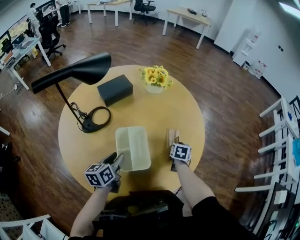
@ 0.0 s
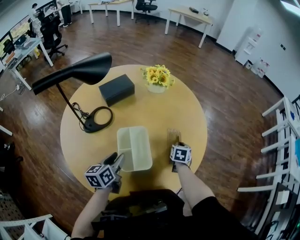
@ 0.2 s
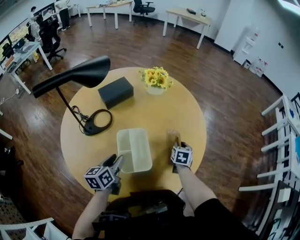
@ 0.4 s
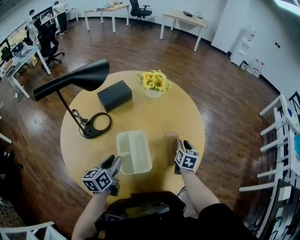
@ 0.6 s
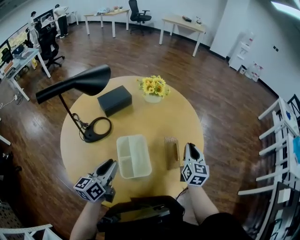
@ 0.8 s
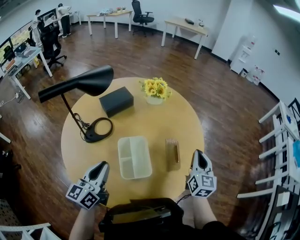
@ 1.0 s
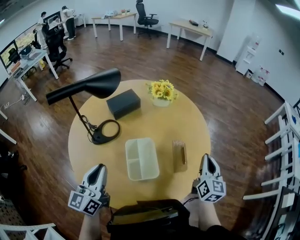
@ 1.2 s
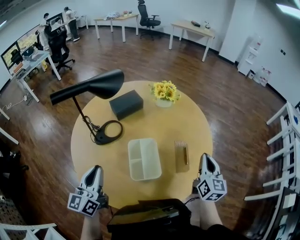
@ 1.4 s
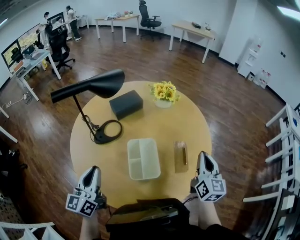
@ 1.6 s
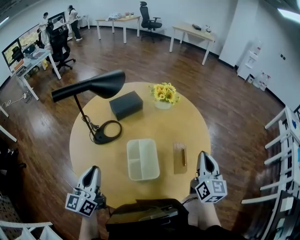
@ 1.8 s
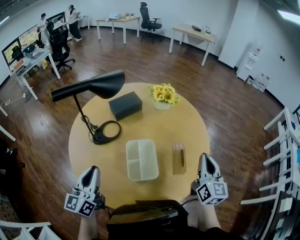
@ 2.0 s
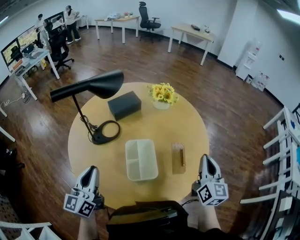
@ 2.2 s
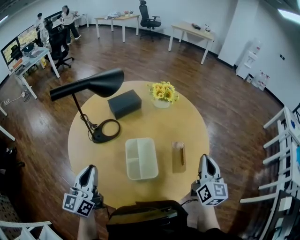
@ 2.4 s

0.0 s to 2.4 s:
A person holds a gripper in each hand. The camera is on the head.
0.0 to 1.2 s: The right gripper heads upward, covering approximately 25 cm, tilts its fingers approximately 40 degrees upward, and opens, then closes again; the left gripper heads upward and backward, covering some 20 cm, swivels some 30 degrees, and closes.
1.2 to 2.4 s: There are only small adjustments of the grippers.

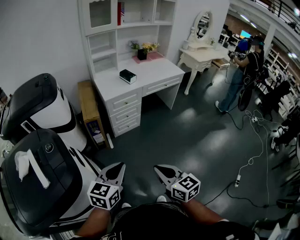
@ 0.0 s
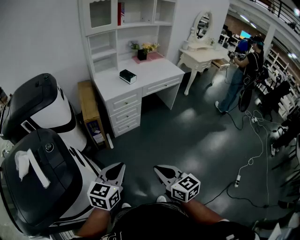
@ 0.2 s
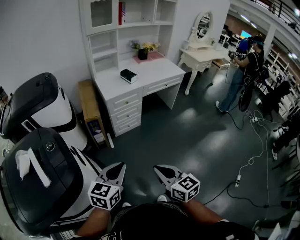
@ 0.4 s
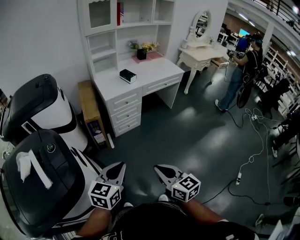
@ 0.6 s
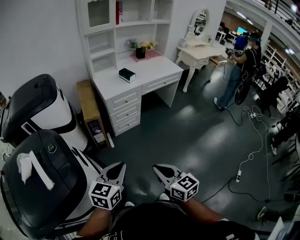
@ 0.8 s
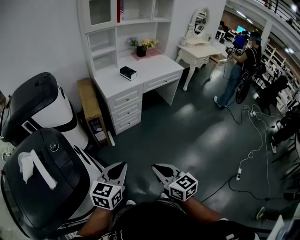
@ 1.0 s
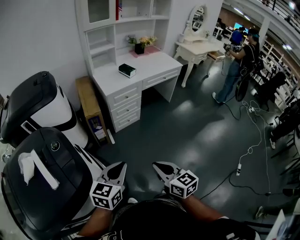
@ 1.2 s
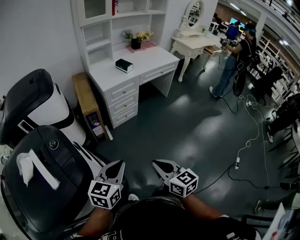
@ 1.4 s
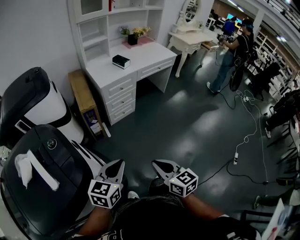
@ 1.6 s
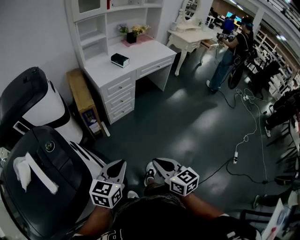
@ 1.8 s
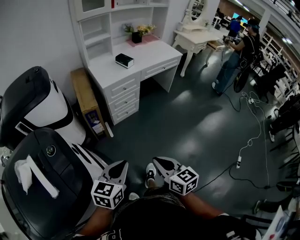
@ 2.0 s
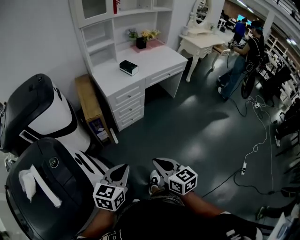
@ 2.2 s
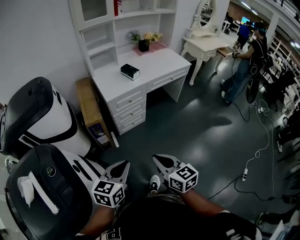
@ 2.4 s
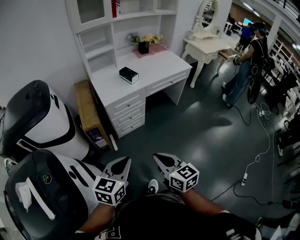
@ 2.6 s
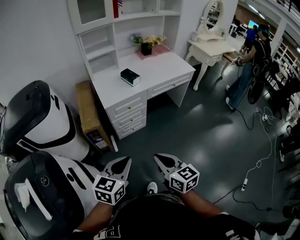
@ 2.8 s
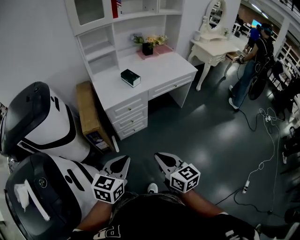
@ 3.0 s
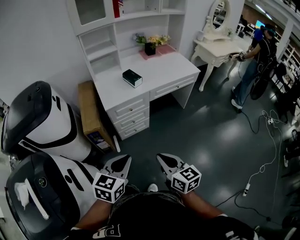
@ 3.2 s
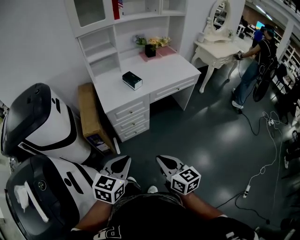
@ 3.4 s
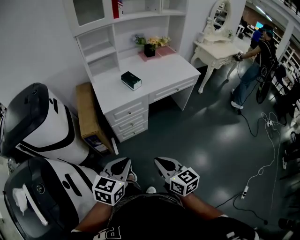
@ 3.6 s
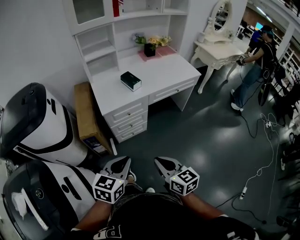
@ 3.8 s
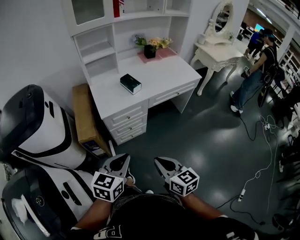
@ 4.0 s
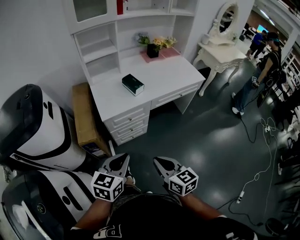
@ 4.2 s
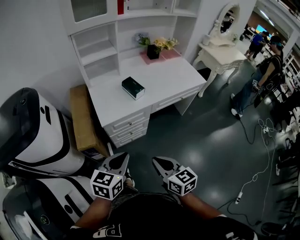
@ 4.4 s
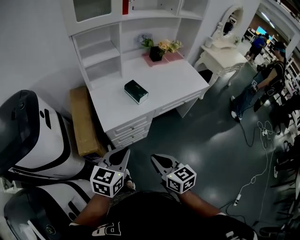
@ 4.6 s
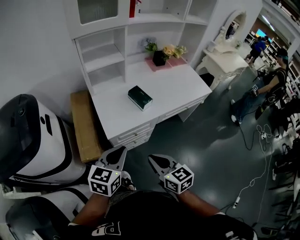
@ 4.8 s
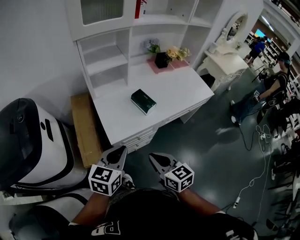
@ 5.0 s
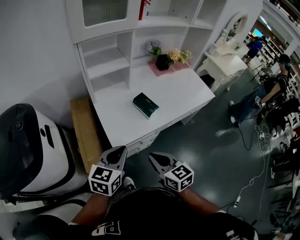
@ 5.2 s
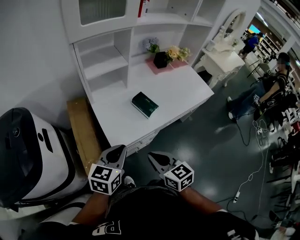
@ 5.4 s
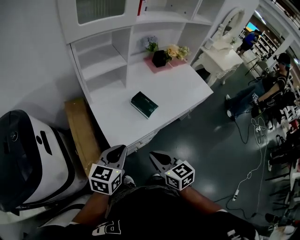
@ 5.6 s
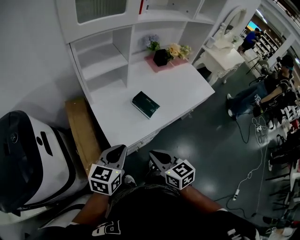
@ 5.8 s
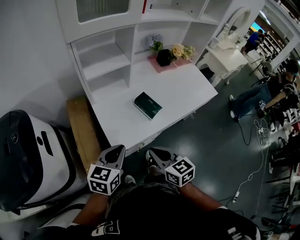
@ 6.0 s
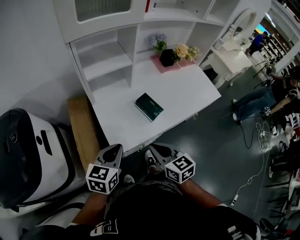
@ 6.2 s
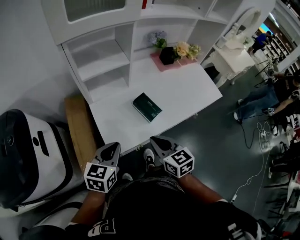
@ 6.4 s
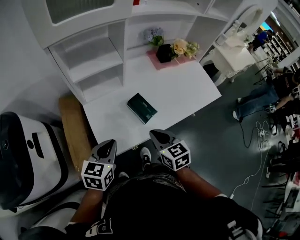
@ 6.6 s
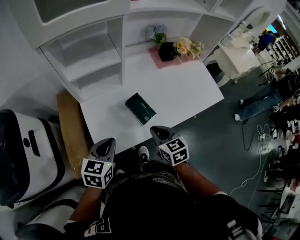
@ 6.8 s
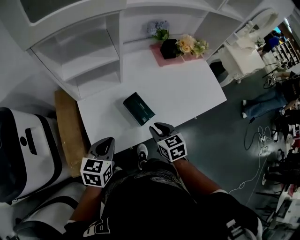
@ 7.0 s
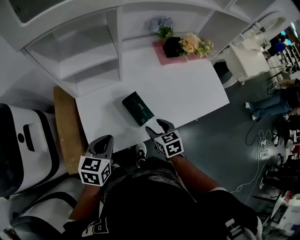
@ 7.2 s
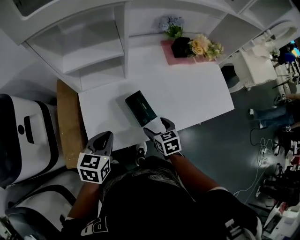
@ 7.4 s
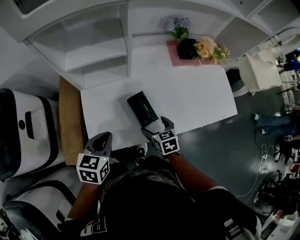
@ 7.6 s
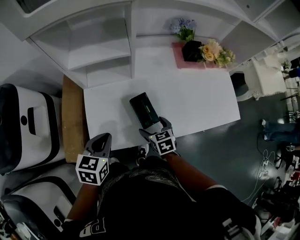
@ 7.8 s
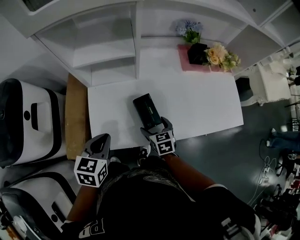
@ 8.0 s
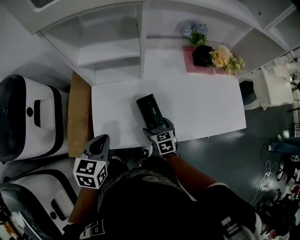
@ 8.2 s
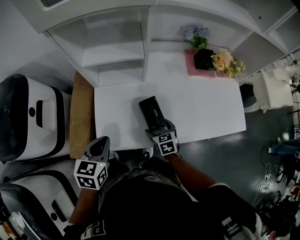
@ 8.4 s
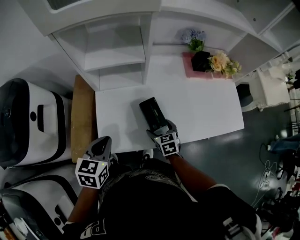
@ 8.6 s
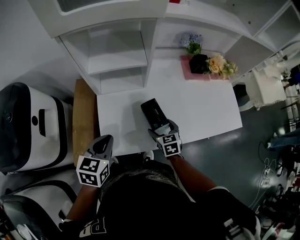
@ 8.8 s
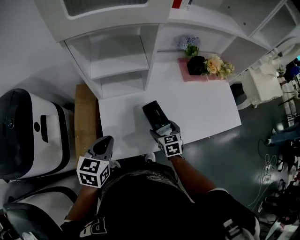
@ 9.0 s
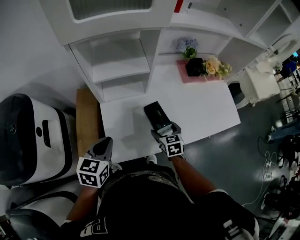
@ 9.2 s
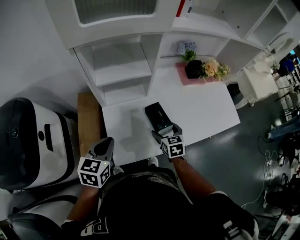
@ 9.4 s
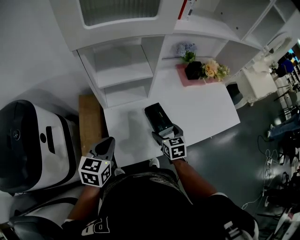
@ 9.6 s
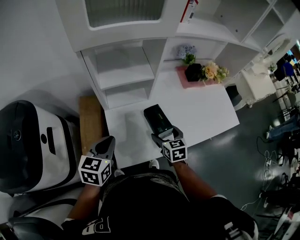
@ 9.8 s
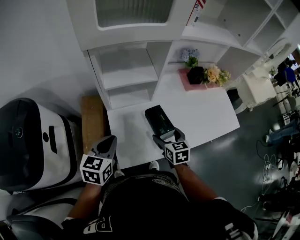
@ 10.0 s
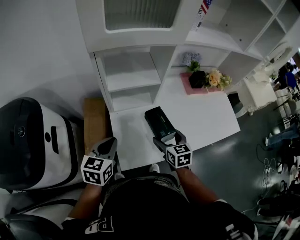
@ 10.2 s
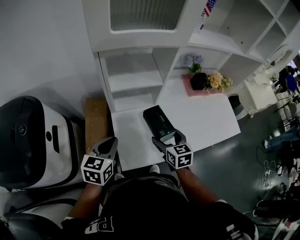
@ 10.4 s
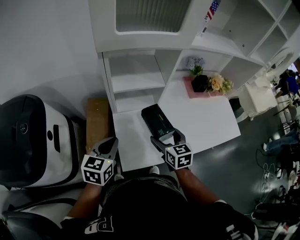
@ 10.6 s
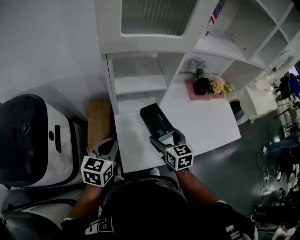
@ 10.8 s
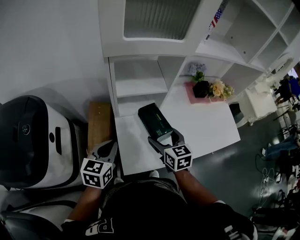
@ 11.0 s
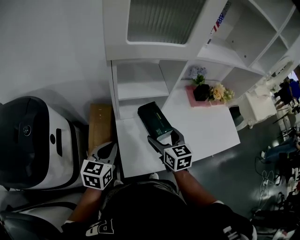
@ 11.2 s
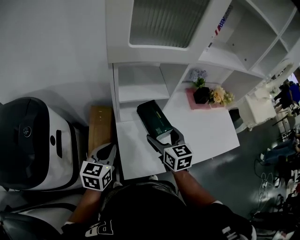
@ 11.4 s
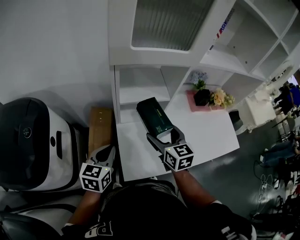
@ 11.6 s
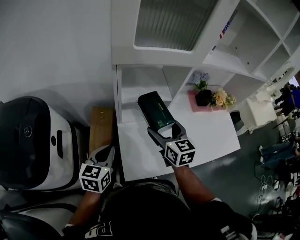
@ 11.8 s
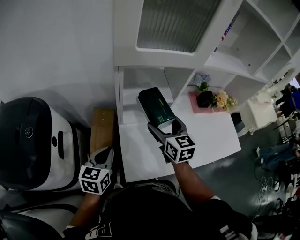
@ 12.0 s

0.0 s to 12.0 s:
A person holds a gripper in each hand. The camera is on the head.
0.0 to 1.6 s: Both grippers move to the left, about 5 cm.
1.6 to 3.0 s: The left gripper moves forward and to the right, roughly 25 cm; the right gripper shifts about 30 cm forward.
3.0 to 4.4 s: Both grippers travel together forward, roughly 20 cm.
4.4 to 6.0 s: The grippers both shift forward and to the left by about 30 cm.
6.0 to 7.6 s: The right gripper shifts approximately 30 cm forward, downward and to the right, changes its angle by roughly 20 degrees, and opens up, while the left gripper is displaced forward, downward and to the right by roughly 15 cm, and swivels approximately 20 degrees.
7.6 to 9.0 s: The right gripper moves about 5 cm. The left gripper moves to the left, some 10 cm.
9.0 to 10.4 s: The left gripper goes roughly 5 cm to the left; the right gripper is displaced upward and to the left by about 15 cm.
10.4 to 12.0 s: The left gripper heads to the left, covering roughly 5 cm. The right gripper is displaced upward, forward and to the left by roughly 15 cm.

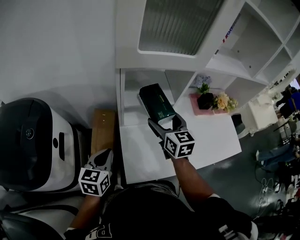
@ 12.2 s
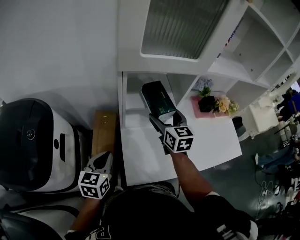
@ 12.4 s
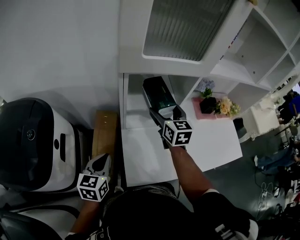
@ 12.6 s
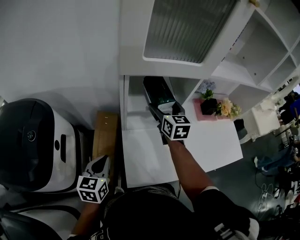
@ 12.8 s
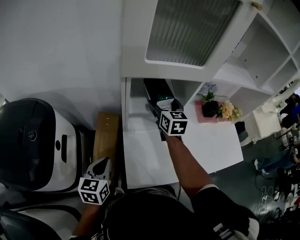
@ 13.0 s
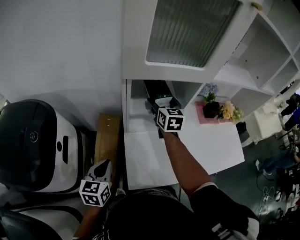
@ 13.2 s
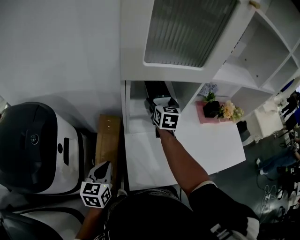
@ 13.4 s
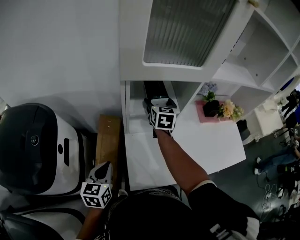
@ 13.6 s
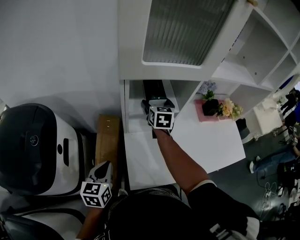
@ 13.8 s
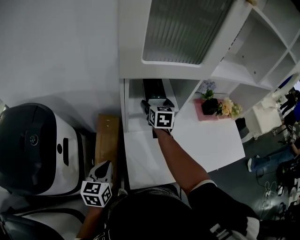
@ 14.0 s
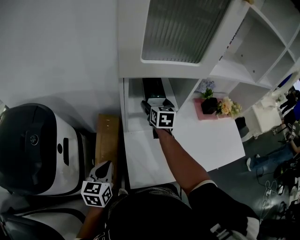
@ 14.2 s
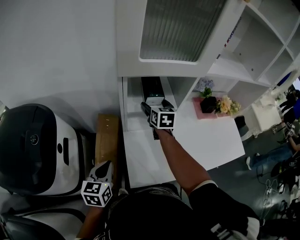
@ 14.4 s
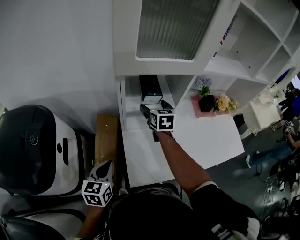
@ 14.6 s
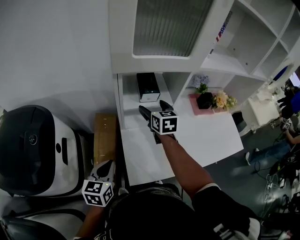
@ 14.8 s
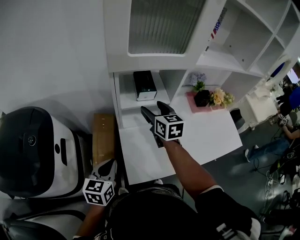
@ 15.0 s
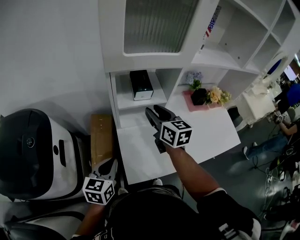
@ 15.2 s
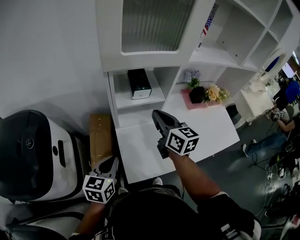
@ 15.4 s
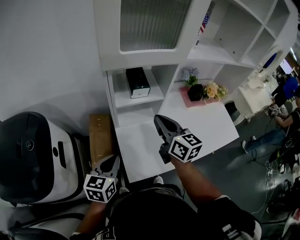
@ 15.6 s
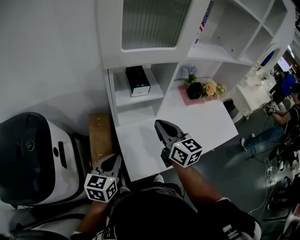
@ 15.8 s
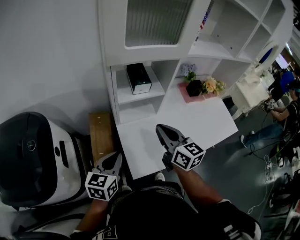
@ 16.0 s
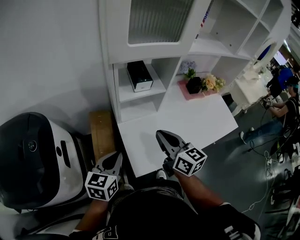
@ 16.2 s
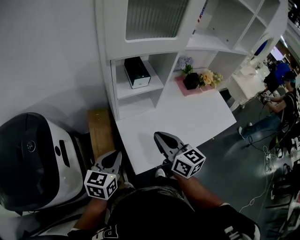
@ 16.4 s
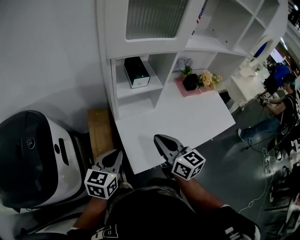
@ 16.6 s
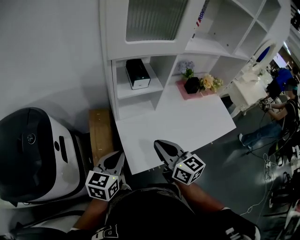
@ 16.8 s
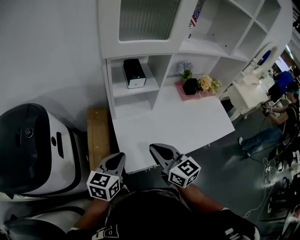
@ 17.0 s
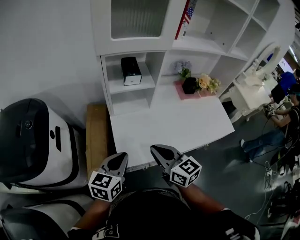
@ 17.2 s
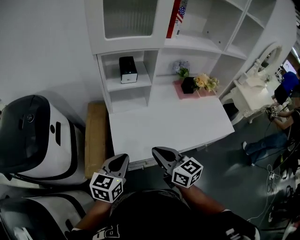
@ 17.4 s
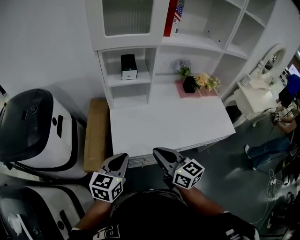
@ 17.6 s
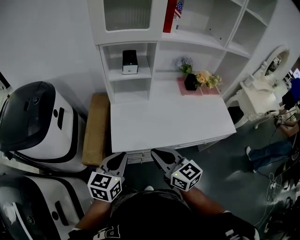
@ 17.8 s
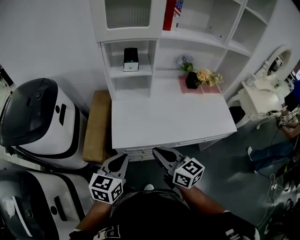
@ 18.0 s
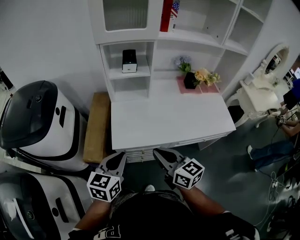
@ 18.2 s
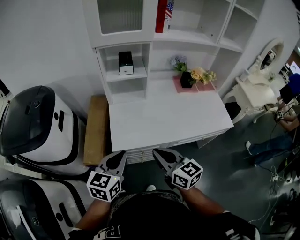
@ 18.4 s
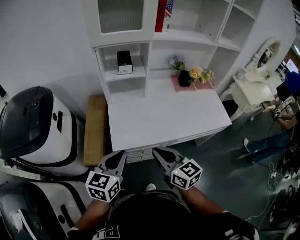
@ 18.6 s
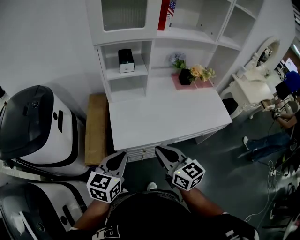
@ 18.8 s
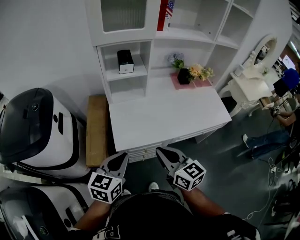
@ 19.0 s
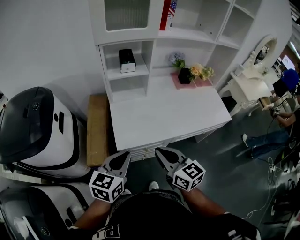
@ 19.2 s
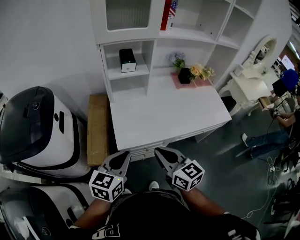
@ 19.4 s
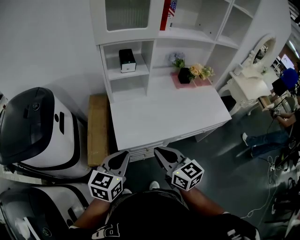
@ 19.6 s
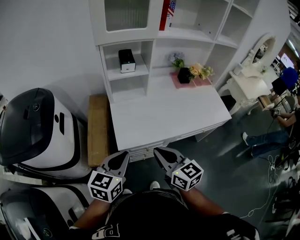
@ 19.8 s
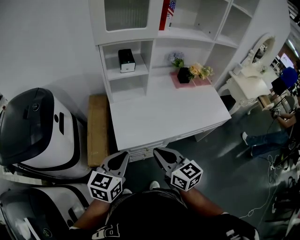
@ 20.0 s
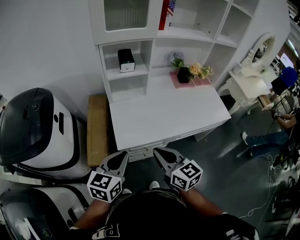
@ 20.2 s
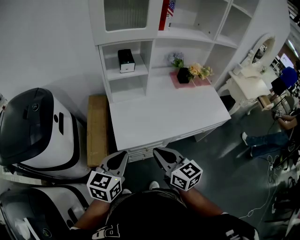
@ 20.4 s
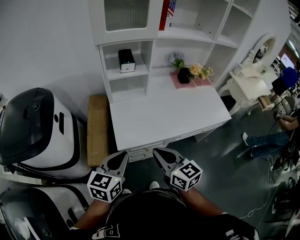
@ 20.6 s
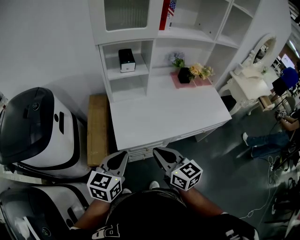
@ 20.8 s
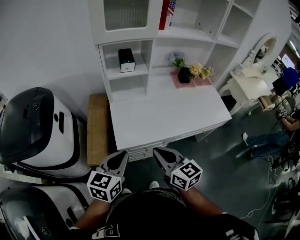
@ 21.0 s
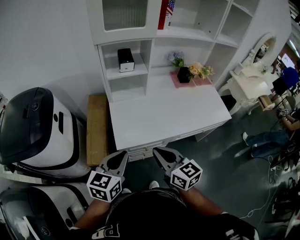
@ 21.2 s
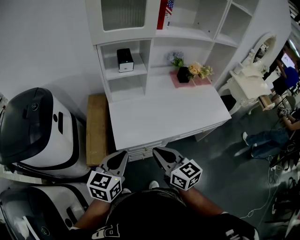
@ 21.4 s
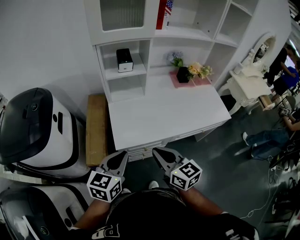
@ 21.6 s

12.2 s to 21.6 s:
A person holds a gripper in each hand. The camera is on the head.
12.2 to 13.8 s: The right gripper moves forward, roughly 15 cm.
13.8 to 15.4 s: The left gripper is displaced to the right by roughly 5 cm, while the right gripper shifts approximately 20 cm backward and upward, turns by roughly 30 degrees, and closes its fingers.
15.4 to 17.0 s: The right gripper heads backward, covering roughly 20 cm. The left gripper goes about 5 cm backward.
17.0 to 18.4 s: The two grippers go approximately 20 cm backward and to the right.
18.4 to 20.0 s: The right gripper goes roughly 5 cm to the left.
20.0 to 21.6 s: Both grippers stay put.
